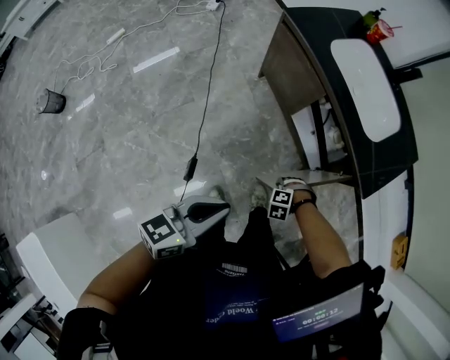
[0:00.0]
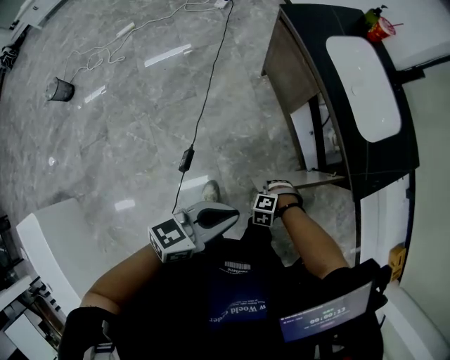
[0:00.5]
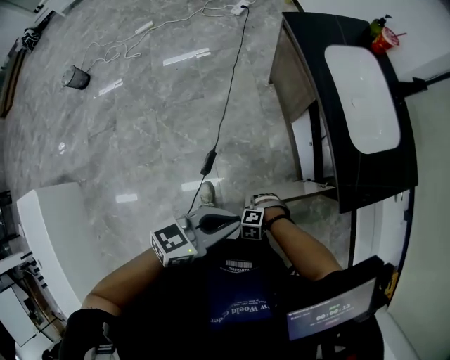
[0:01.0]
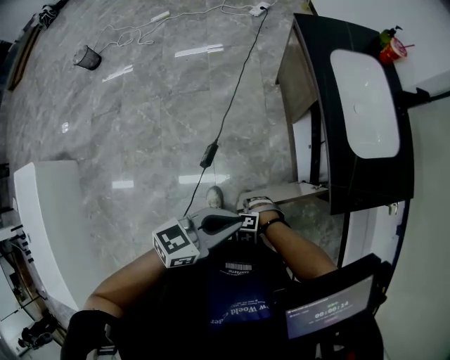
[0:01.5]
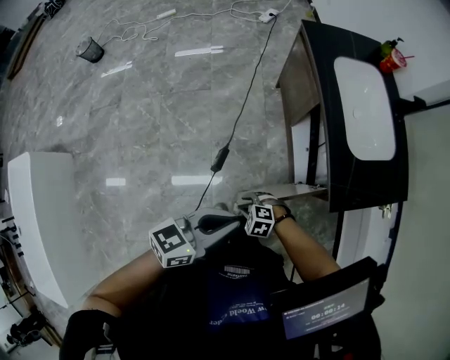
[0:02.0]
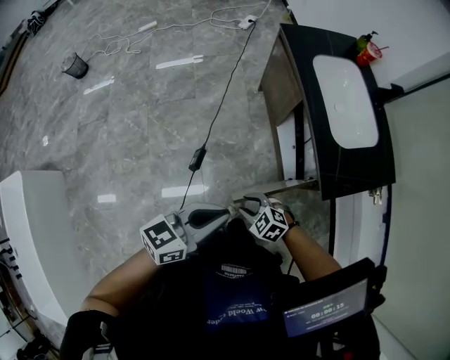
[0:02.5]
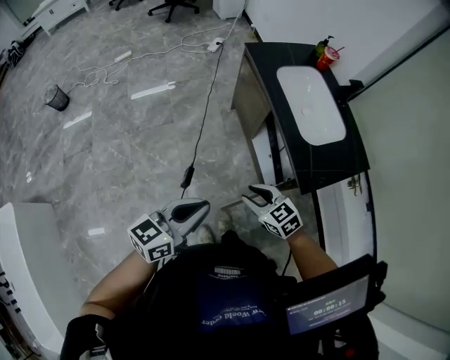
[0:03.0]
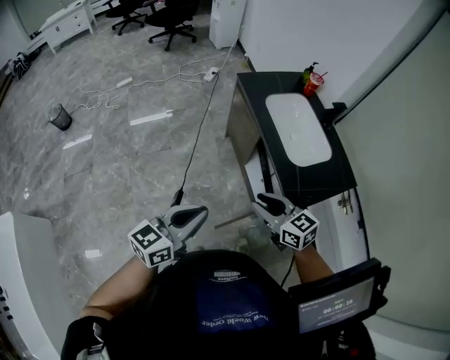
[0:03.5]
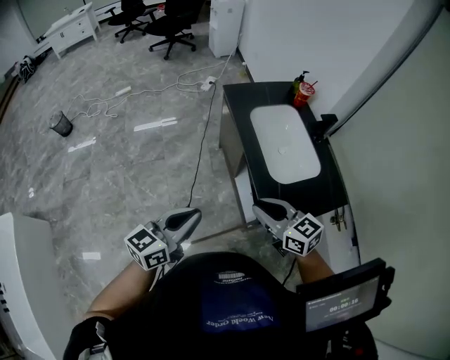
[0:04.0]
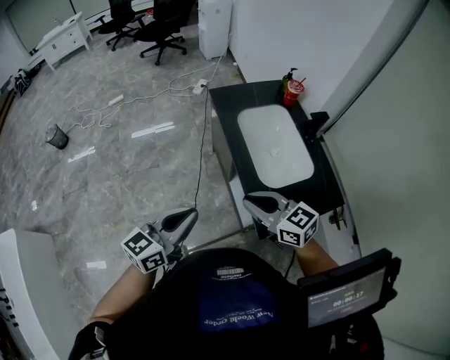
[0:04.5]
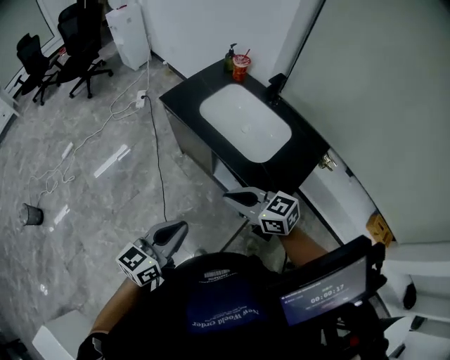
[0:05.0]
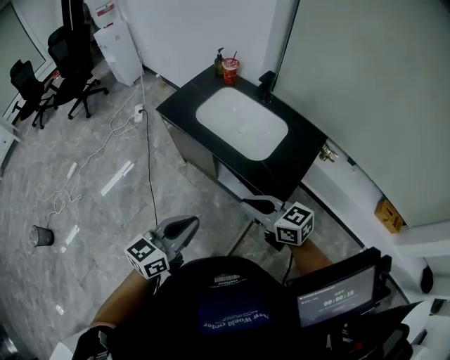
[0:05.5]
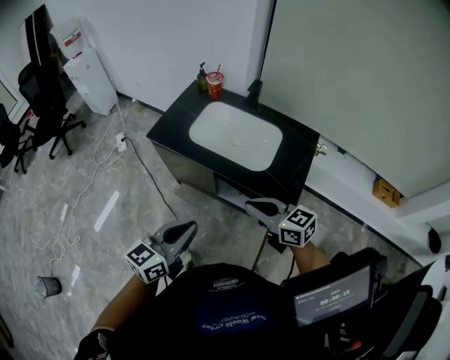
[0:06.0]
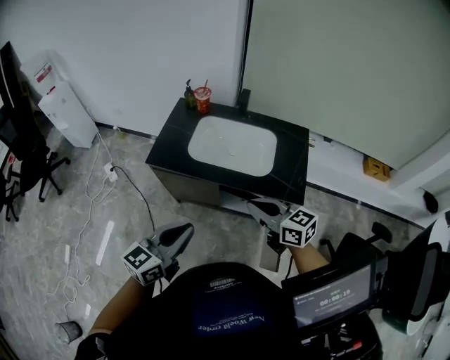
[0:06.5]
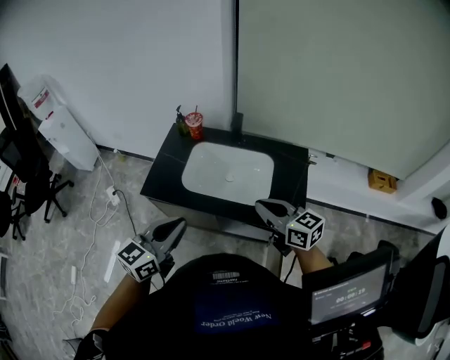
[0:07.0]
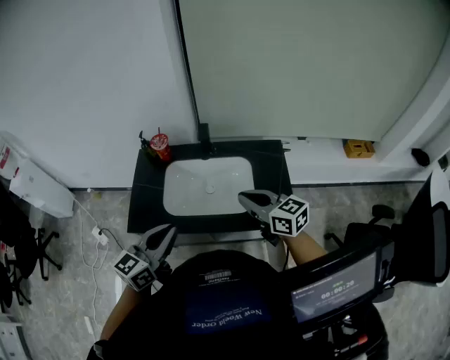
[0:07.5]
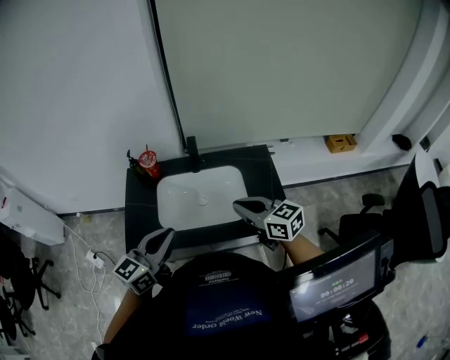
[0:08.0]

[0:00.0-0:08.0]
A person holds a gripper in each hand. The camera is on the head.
0:00.0 to 0:02.0: The right gripper ends up about 10 cm from where it was, and turns by roughly 30 degrees. Meanwhile the left gripper ends up some 20 cm from where it was.
0:02.0 to 0:04.0: The right gripper is displaced upward by roughly 35 cm, and tips its fingers upward by roughly 50 degrees. Meanwhile the left gripper heads upward, covering some 10 cm.
0:04.0 to 0:06.0: The left gripper moves approximately 20 cm, and swivels about 40 degrees, while the right gripper moves about 10 cm, and swivels roughly 40 degrees.
0:06.0 to 0:08.0: The left gripper moves approximately 30 cm, and swivels roughly 30 degrees; the right gripper changes place by approximately 20 cm, and rotates roughly 40 degrees.

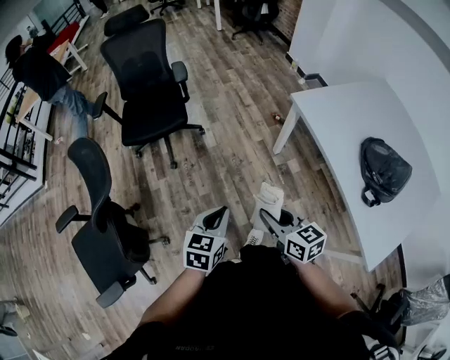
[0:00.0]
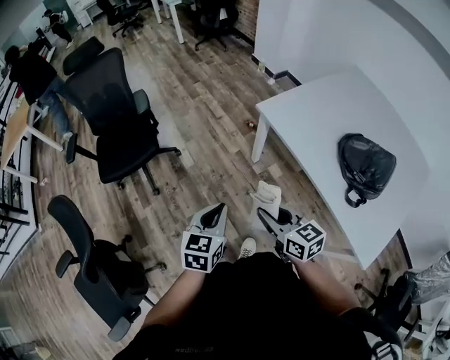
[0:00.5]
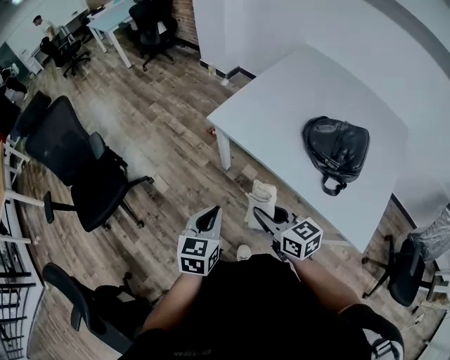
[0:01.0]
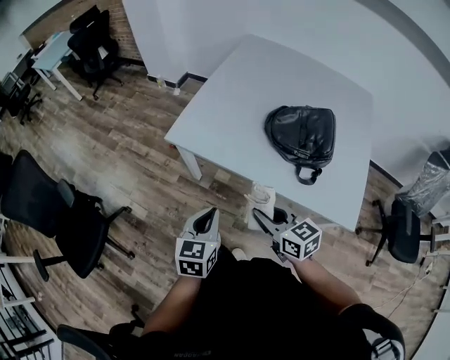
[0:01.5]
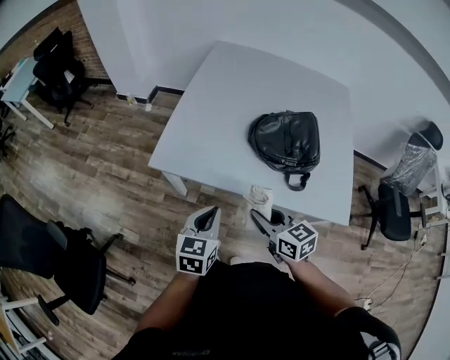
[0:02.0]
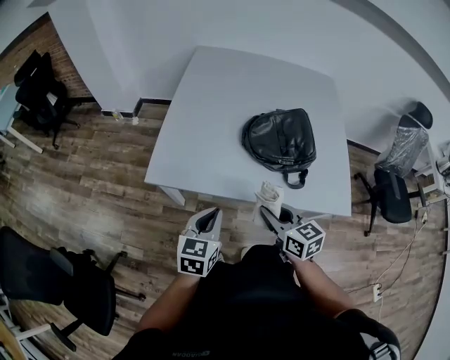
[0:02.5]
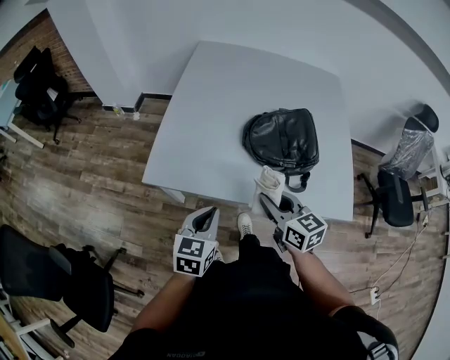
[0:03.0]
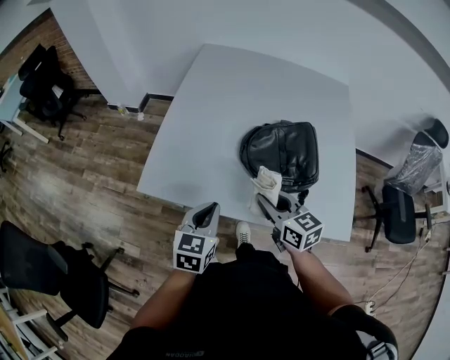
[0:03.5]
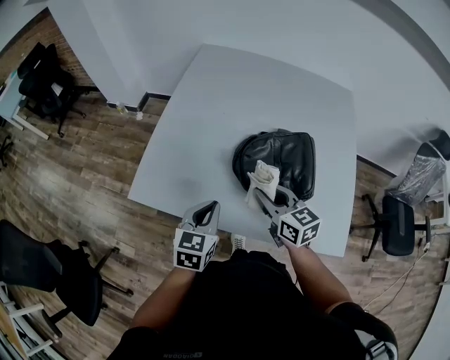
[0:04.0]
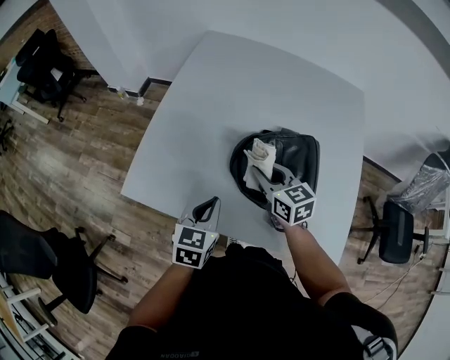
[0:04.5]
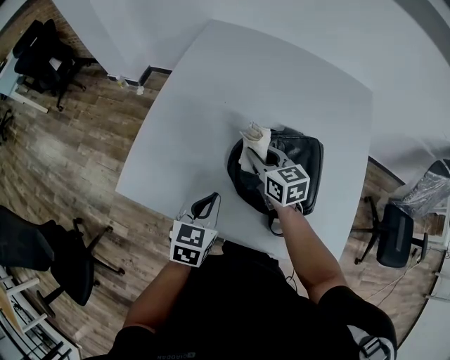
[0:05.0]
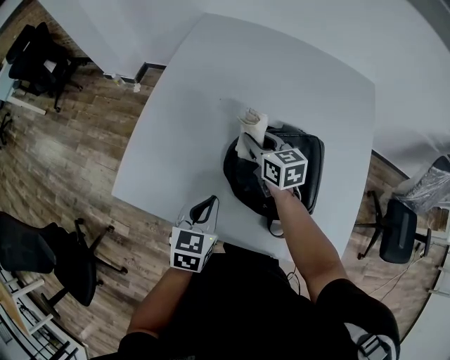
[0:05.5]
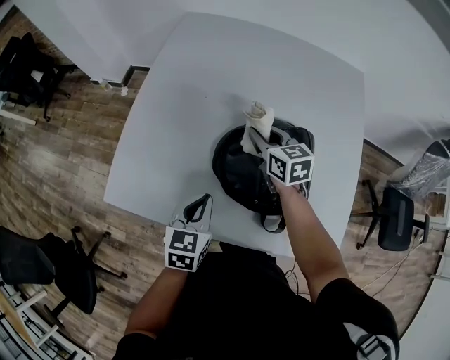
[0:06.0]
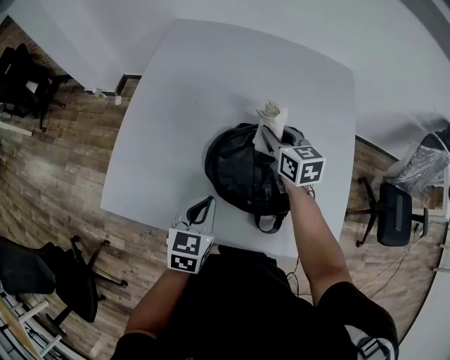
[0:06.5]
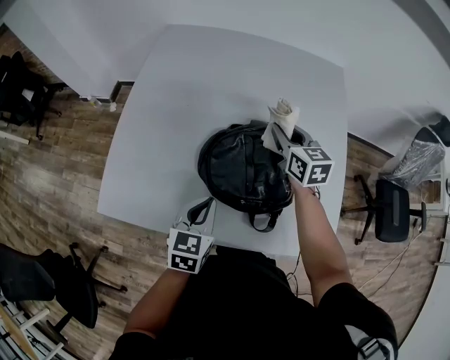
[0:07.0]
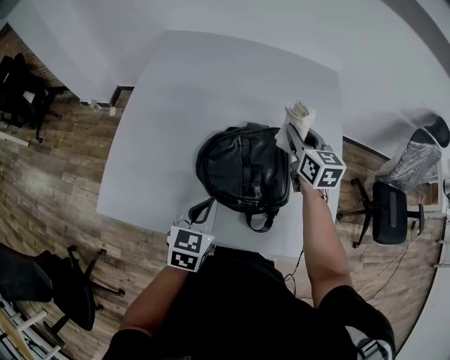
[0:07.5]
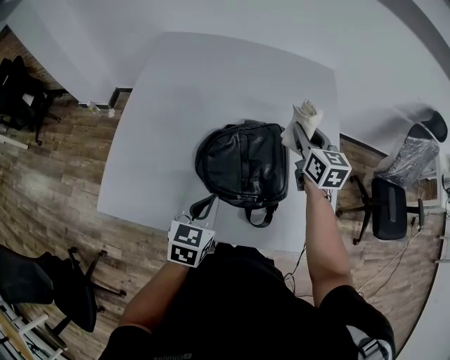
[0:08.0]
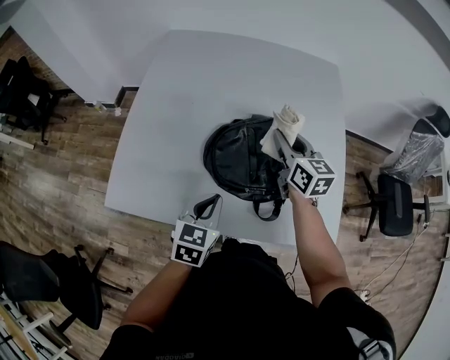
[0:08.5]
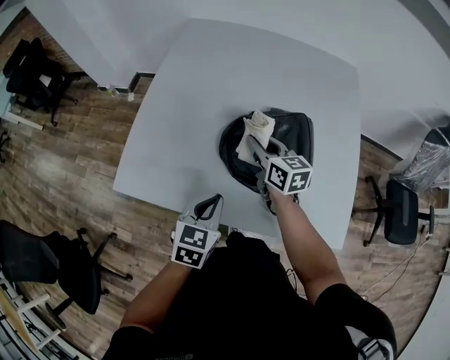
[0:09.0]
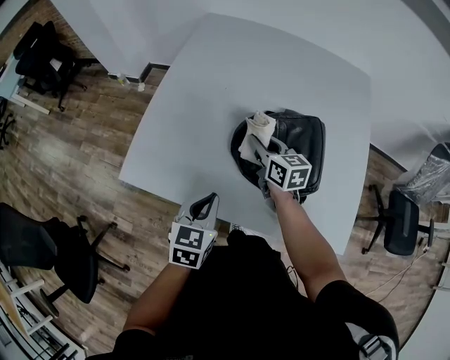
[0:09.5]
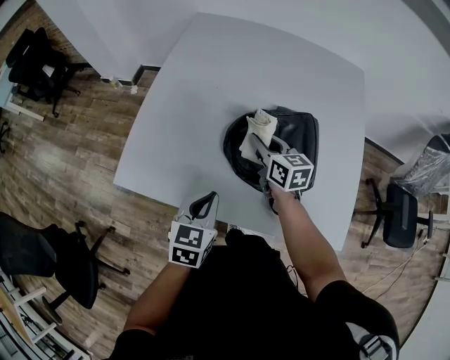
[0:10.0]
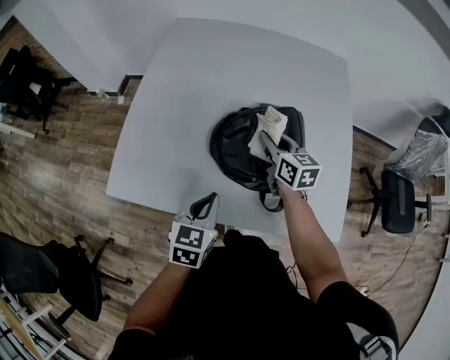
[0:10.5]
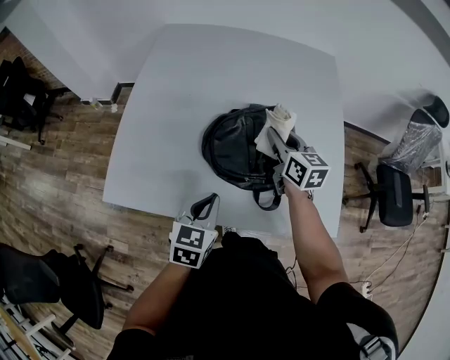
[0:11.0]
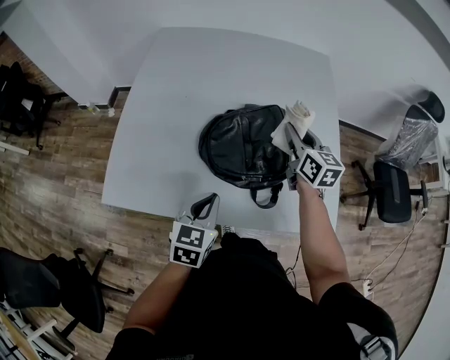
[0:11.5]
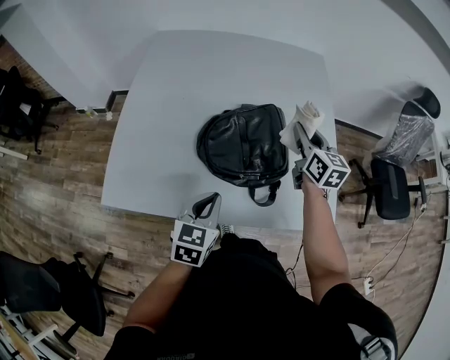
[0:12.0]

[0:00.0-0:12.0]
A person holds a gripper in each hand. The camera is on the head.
0:00.0 to 0:02.0: The left gripper moves some 40 cm, and turns by approximately 50 degrees, while the right gripper shifts by roughly 35 cm, and turns by about 50 degrees.
0:02.0 to 0:04.0: Both grippers travel together forward and to the right, some 20 cm.
0:04.0 to 0:06.0: The right gripper goes roughly 20 cm forward; the left gripper goes roughly 10 cm forward and to the right.
0:06.0 to 0:08.0: The right gripper moves to the right and upward, about 20 cm, and turns by about 20 degrees, while the left gripper goes roughly 5 cm to the right.
0:08.0 to 0:10.0: The right gripper is displaced to the left and downward by approximately 25 cm, and rotates some 20 degrees, while the left gripper heads to the left and backward, covering about 10 cm.
0:10.0 to 0:12.0: The right gripper heads to the right and upward, covering roughly 25 cm, and rotates about 30 degrees. Meanwhile the left gripper moves to the right, roughly 5 cm.

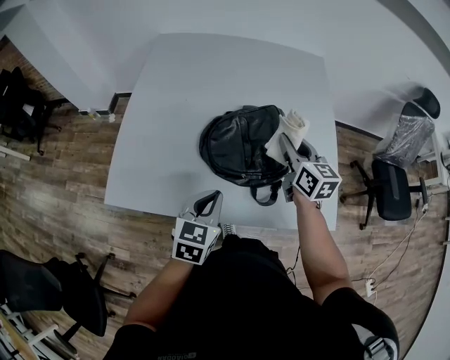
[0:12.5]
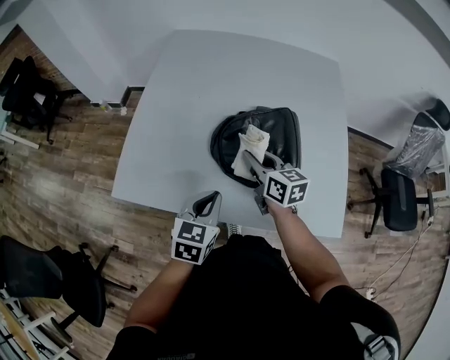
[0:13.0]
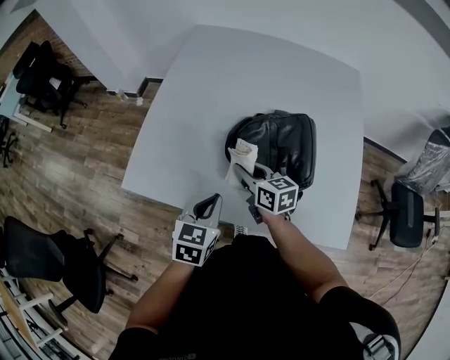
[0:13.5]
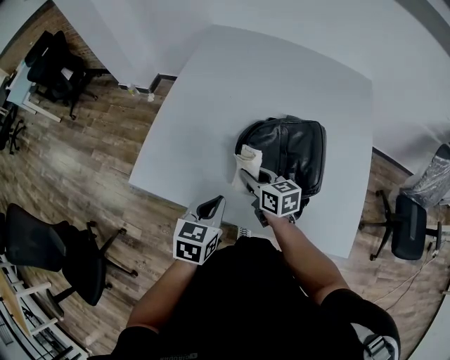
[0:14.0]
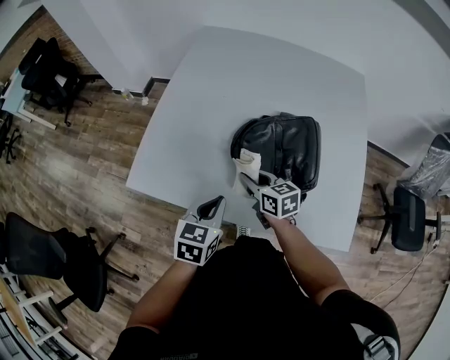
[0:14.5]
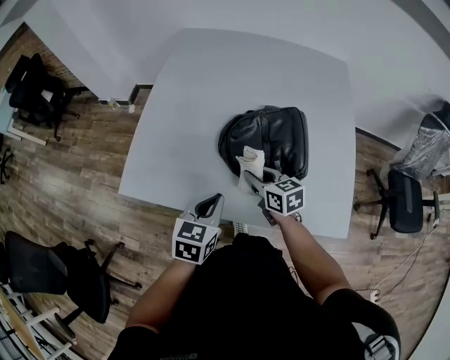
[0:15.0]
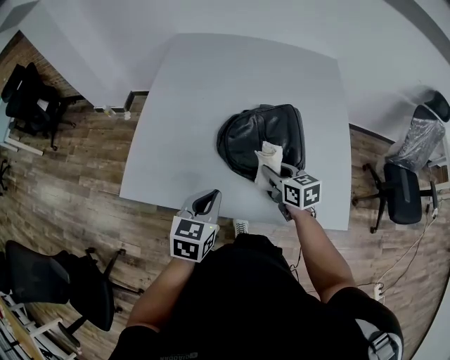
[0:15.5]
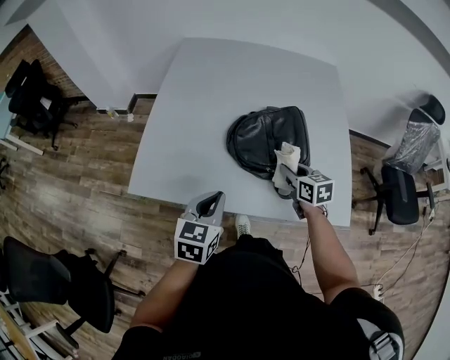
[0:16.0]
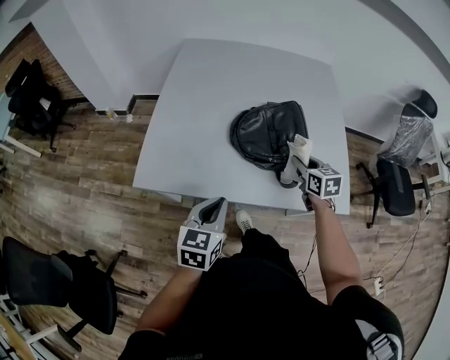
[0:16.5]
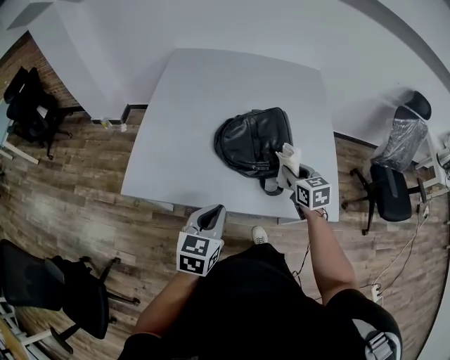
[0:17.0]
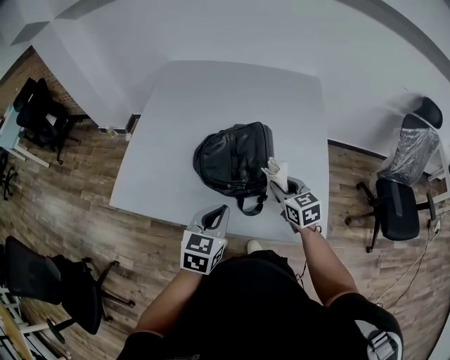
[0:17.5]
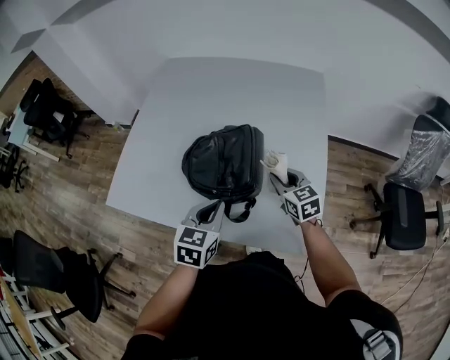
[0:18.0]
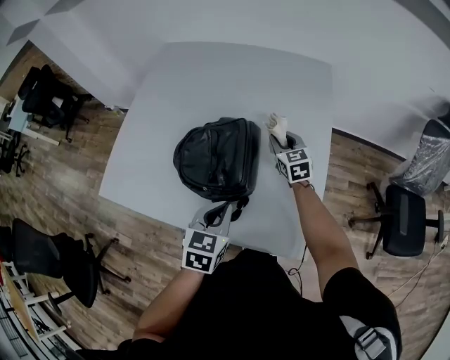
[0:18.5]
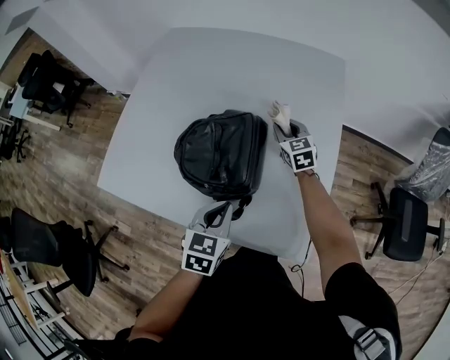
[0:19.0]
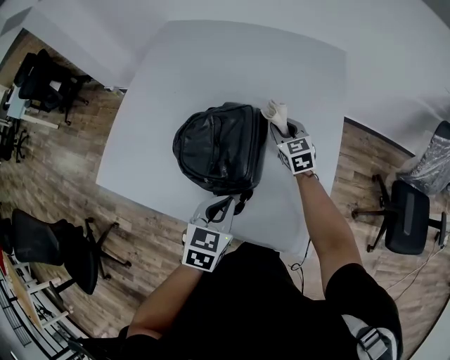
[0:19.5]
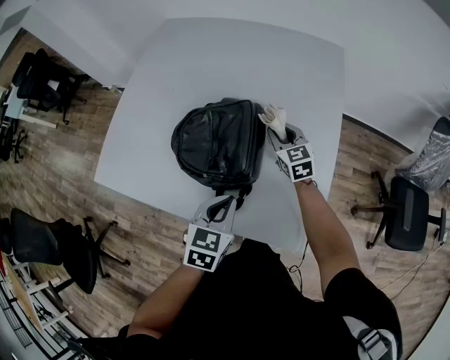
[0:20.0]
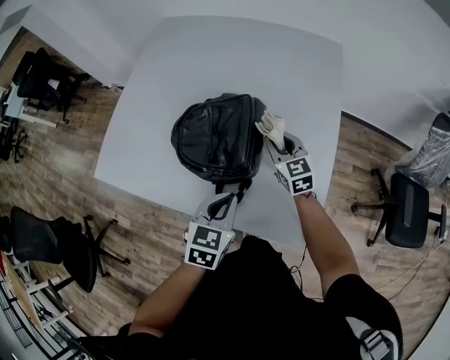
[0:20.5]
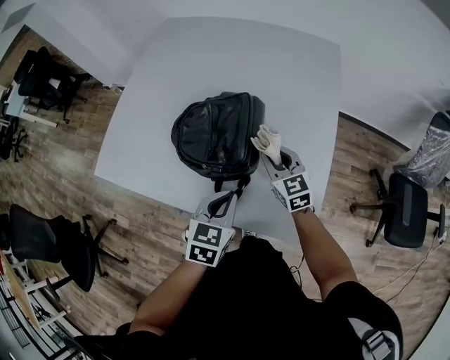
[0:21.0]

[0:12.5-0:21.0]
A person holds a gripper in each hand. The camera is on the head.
0:12.5 to 0:14.5: The left gripper moves to the left, approximately 5 cm. The right gripper travels to the left and downward by approximately 25 cm, and swivels some 30 degrees.
0:14.5 to 0:16.5: The left gripper moves backward and upward, approximately 10 cm. Meanwhile the right gripper is displaced to the right and upward by approximately 15 cm, and rotates some 30 degrees.
0:16.5 to 0:19.0: The left gripper travels to the right and forward by about 30 cm; the right gripper goes about 30 cm forward and to the right, and rotates roughly 20 degrees.
0:19.0 to 0:21.0: The right gripper heads backward, covering some 15 cm.
